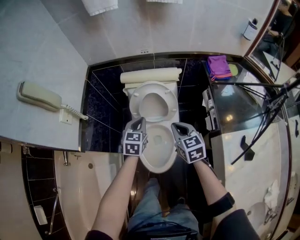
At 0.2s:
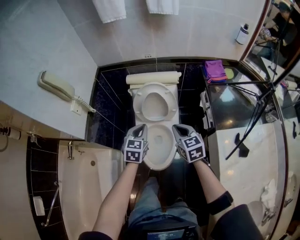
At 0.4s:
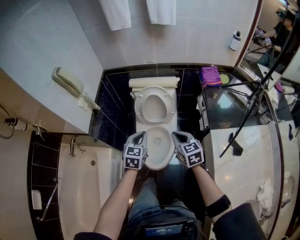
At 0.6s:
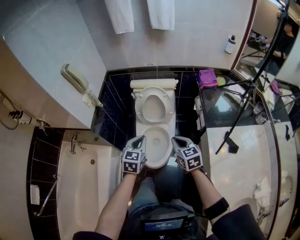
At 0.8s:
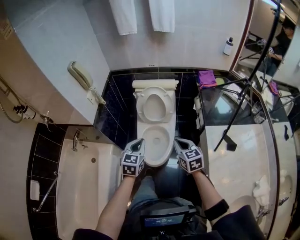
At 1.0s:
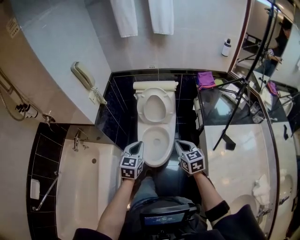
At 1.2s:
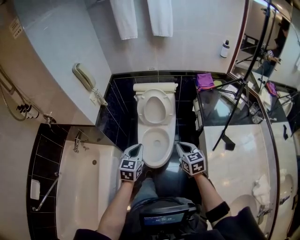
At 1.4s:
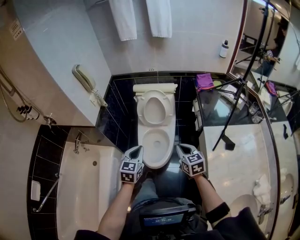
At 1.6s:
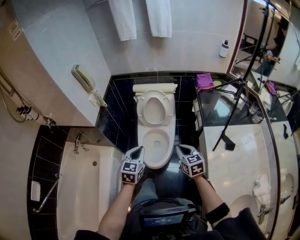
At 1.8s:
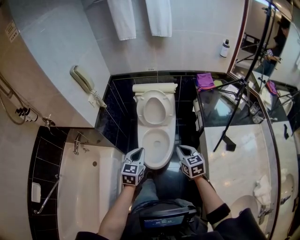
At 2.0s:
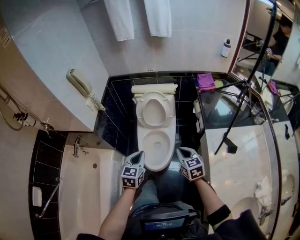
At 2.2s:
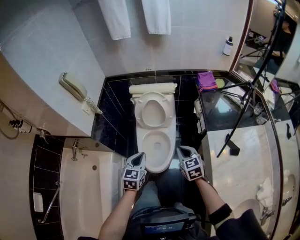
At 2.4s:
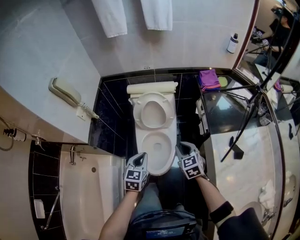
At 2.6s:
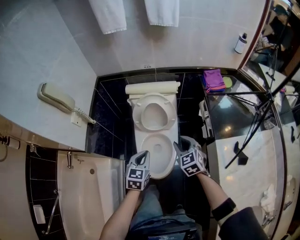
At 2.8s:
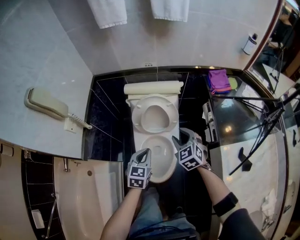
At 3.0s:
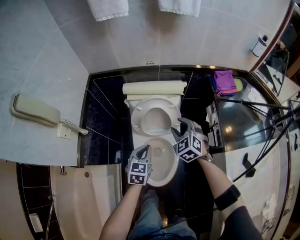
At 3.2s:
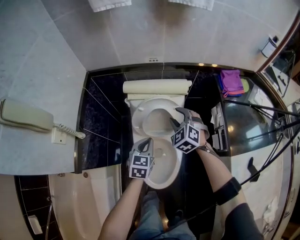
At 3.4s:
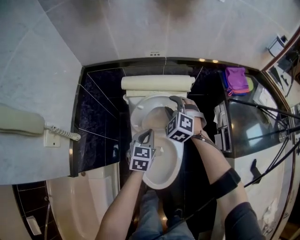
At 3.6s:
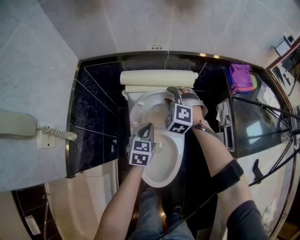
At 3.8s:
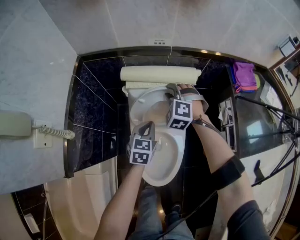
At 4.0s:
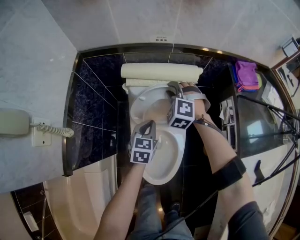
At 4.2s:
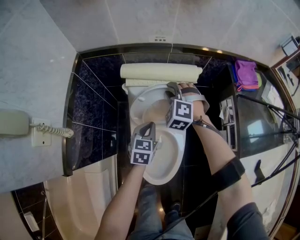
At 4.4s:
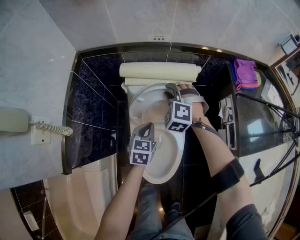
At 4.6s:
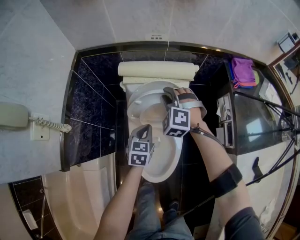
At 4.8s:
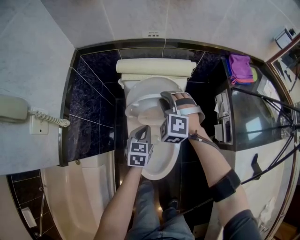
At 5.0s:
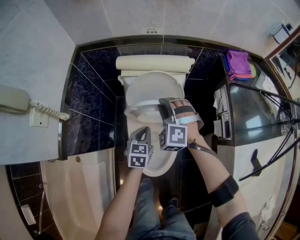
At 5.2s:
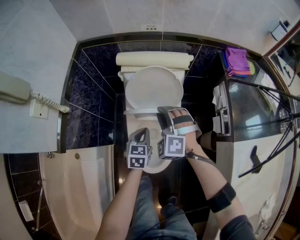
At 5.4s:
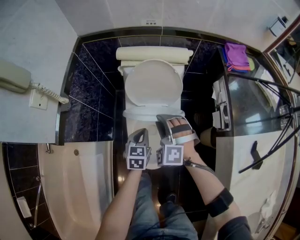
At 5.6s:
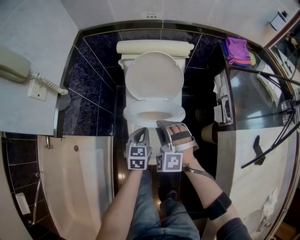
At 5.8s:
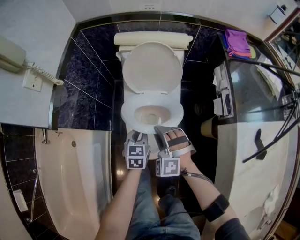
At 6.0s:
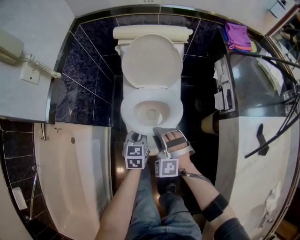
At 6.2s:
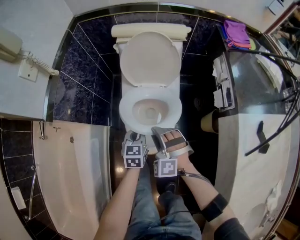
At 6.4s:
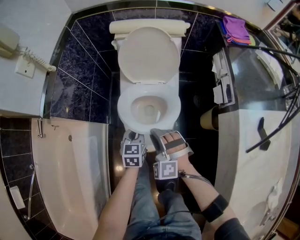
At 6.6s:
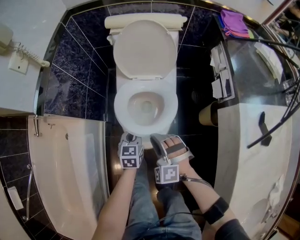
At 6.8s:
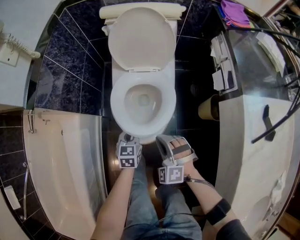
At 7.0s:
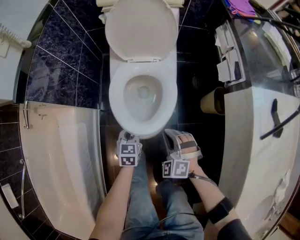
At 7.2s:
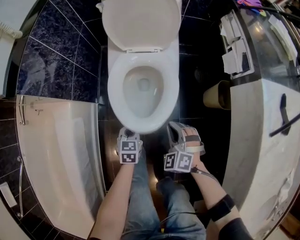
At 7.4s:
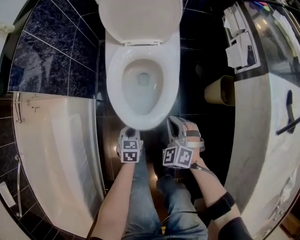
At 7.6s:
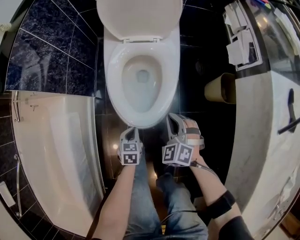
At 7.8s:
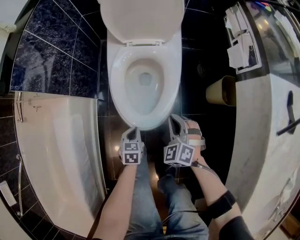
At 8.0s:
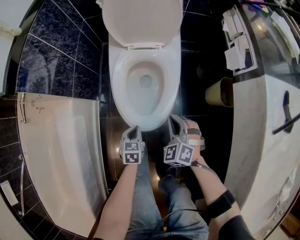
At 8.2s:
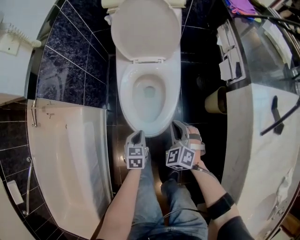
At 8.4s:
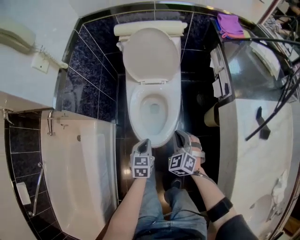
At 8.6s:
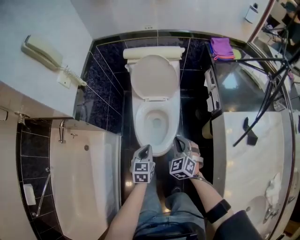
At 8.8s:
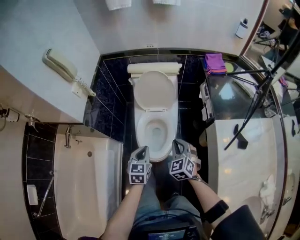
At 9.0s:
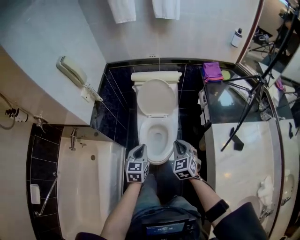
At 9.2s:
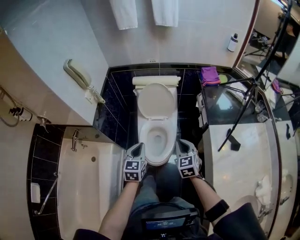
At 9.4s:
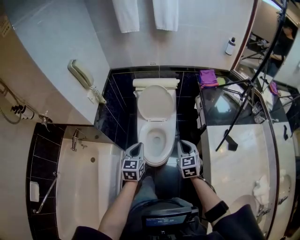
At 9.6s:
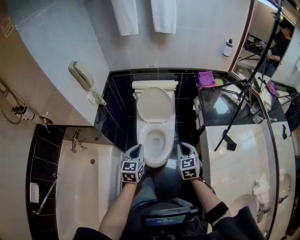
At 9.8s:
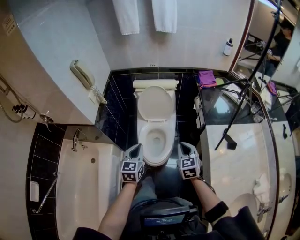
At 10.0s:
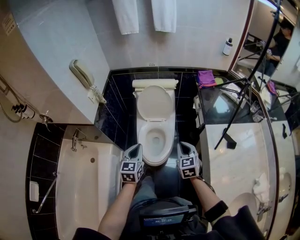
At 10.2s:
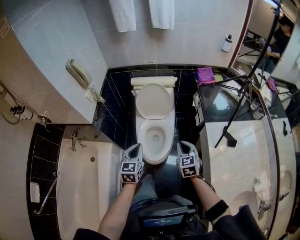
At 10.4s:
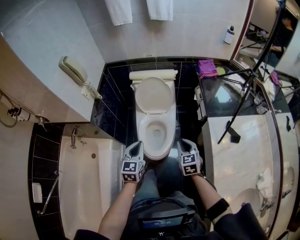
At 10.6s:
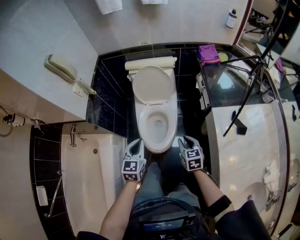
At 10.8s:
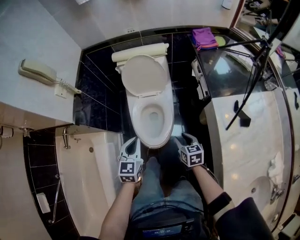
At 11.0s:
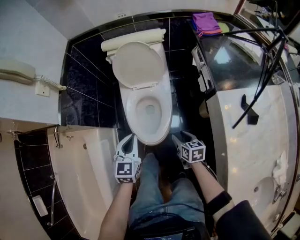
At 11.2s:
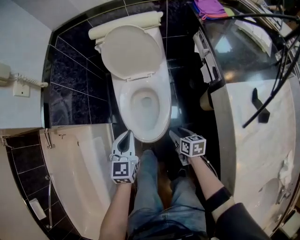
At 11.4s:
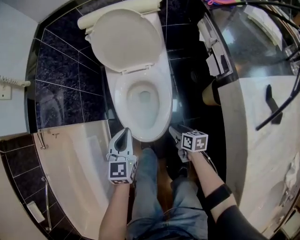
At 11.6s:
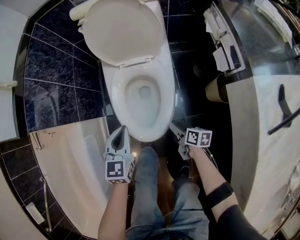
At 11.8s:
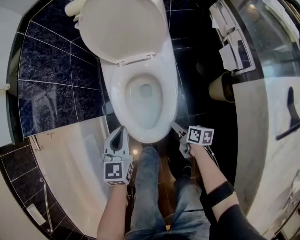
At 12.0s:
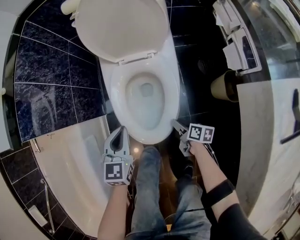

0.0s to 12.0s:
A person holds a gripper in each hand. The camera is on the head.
0.0s to 1.6s: Both grippers move backward, approximately 30 cm.
1.6s to 3.0s: The right gripper is displaced forward by roughly 35 cm, turns by some 40 degrees, and opens, while the left gripper moves forward and downward, roughly 35 cm.
3.0s to 4.4s: The left gripper goes roughly 15 cm forward and downward, while the right gripper heads forward, to the left and downward, covering approximately 20 cm, and turns by some 30 degrees.
4.4s to 6.0s: The right gripper shifts some 40 cm backward. The left gripper moves backward, about 25 cm.
6.0s to 7.6s: The right gripper is displaced downward, to the right and backward by about 25 cm, changes its angle by some 30 degrees, and closes; the left gripper moves downward and backward, approximately 35 cm.
7.6s to 9.0s: Both grippers travel together upward, about 50 cm. The left gripper changes its angle by roughly 30 degrees; the right gripper rotates roughly 30 degrees.
9.0s to 10.4s: The left gripper travels upward by some 5 cm. Meanwhile the right gripper moves approximately 5 cm.
10.4s to 12.0s: Both grippers travel together downward, approximately 50 cm. The right gripper rotates around the line of its fingers by roughly 60 degrees, clockwise from behind, and opens its fingers.

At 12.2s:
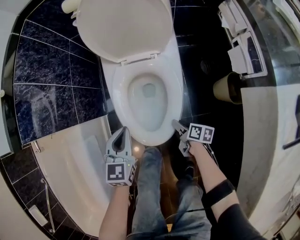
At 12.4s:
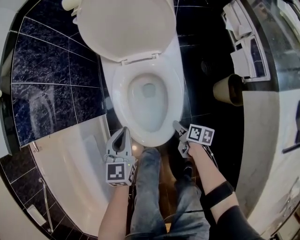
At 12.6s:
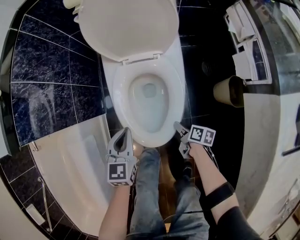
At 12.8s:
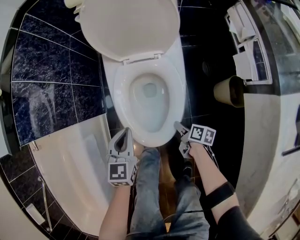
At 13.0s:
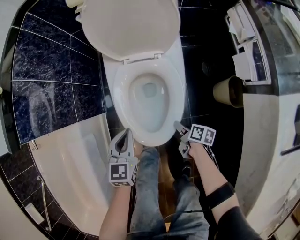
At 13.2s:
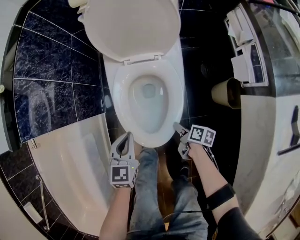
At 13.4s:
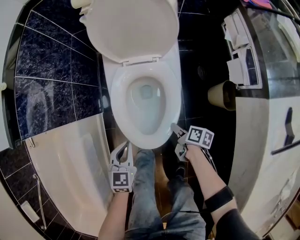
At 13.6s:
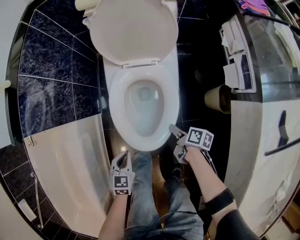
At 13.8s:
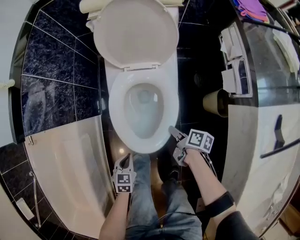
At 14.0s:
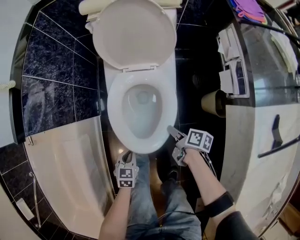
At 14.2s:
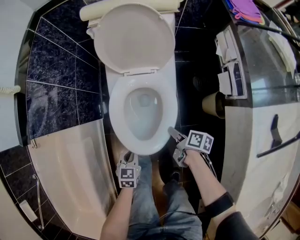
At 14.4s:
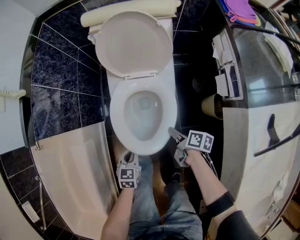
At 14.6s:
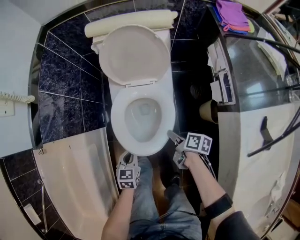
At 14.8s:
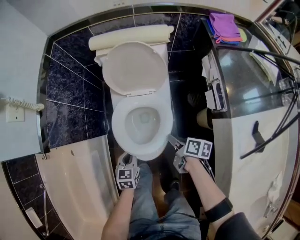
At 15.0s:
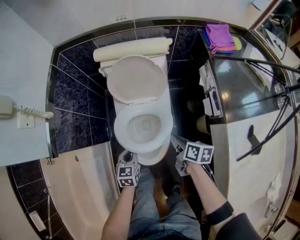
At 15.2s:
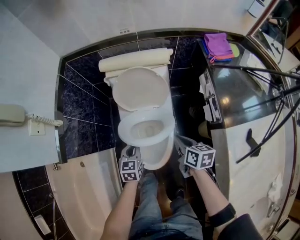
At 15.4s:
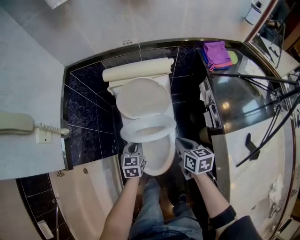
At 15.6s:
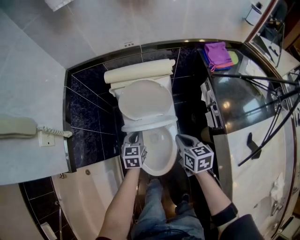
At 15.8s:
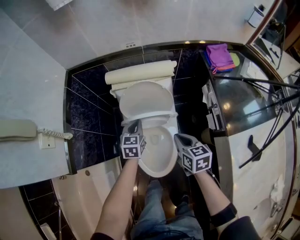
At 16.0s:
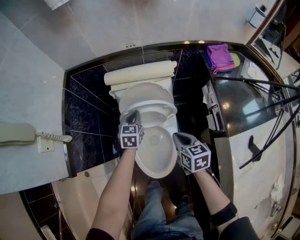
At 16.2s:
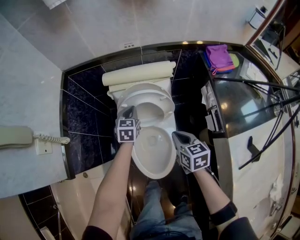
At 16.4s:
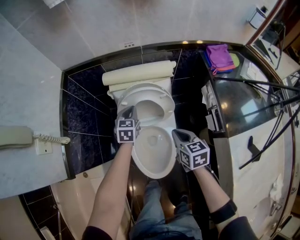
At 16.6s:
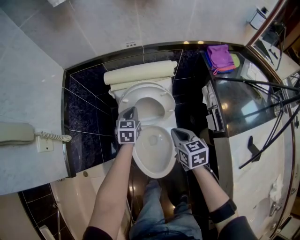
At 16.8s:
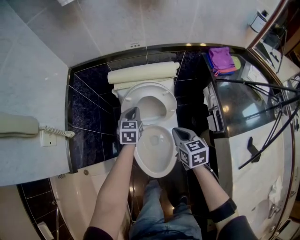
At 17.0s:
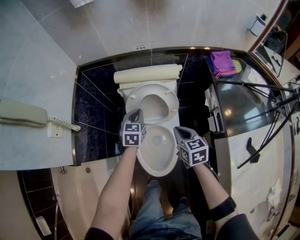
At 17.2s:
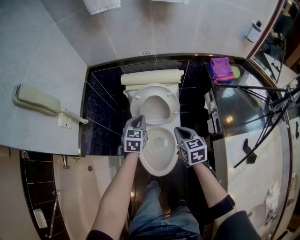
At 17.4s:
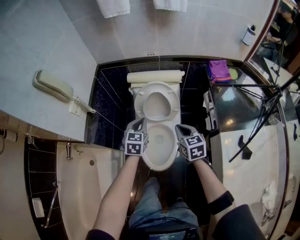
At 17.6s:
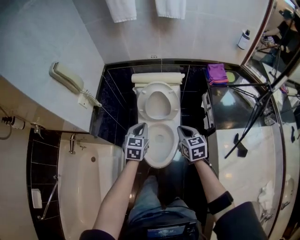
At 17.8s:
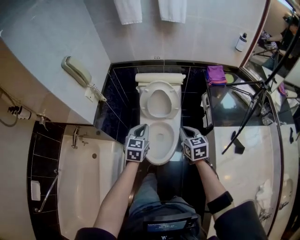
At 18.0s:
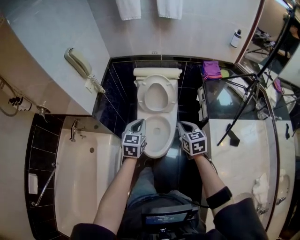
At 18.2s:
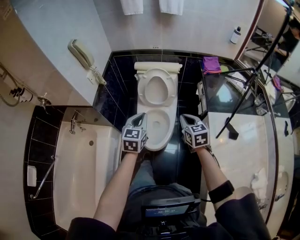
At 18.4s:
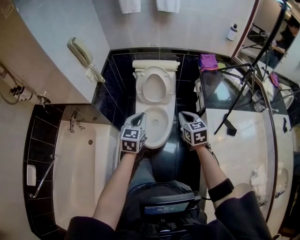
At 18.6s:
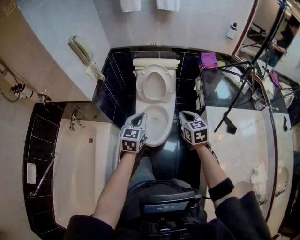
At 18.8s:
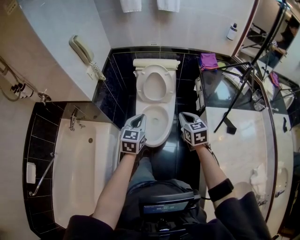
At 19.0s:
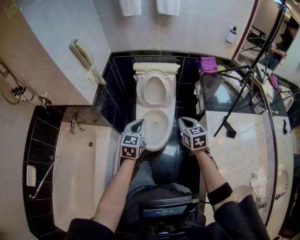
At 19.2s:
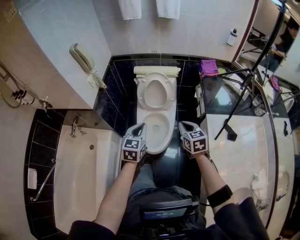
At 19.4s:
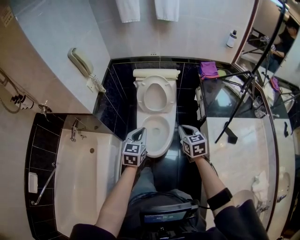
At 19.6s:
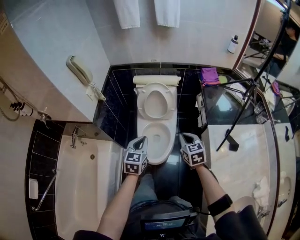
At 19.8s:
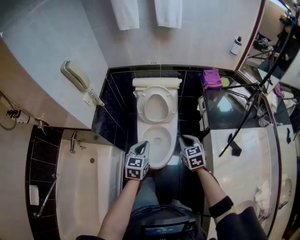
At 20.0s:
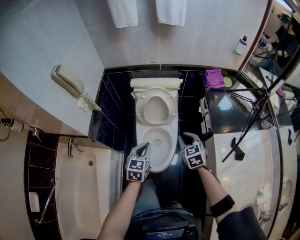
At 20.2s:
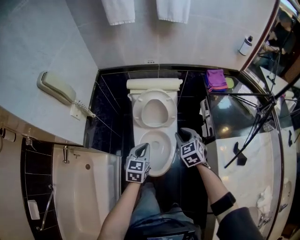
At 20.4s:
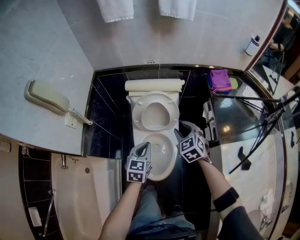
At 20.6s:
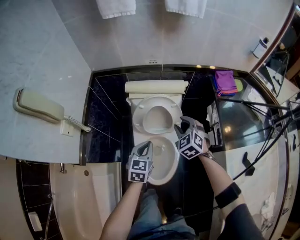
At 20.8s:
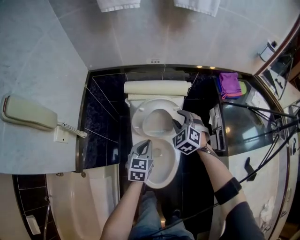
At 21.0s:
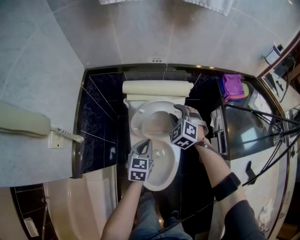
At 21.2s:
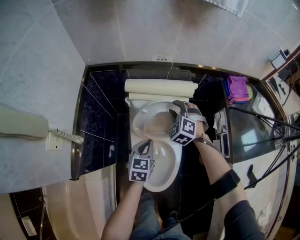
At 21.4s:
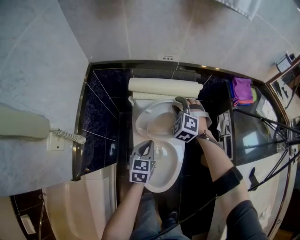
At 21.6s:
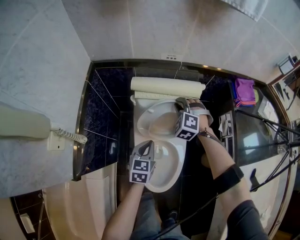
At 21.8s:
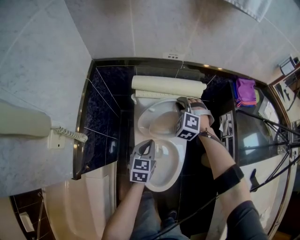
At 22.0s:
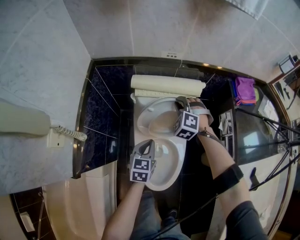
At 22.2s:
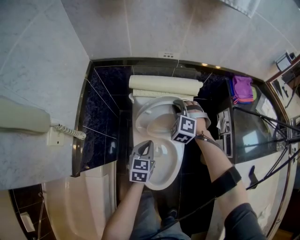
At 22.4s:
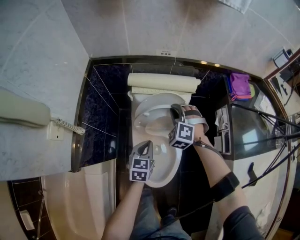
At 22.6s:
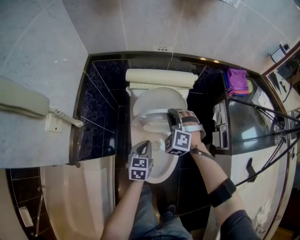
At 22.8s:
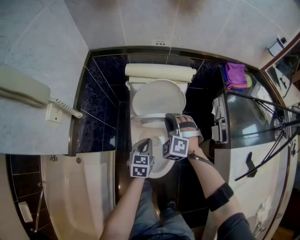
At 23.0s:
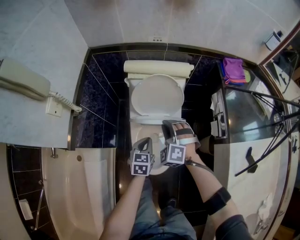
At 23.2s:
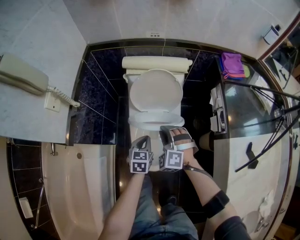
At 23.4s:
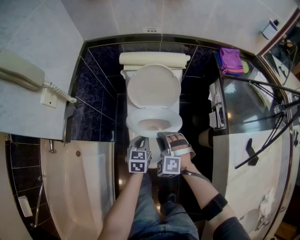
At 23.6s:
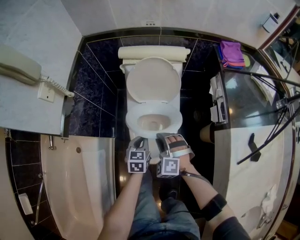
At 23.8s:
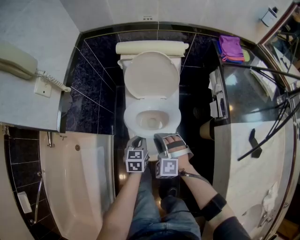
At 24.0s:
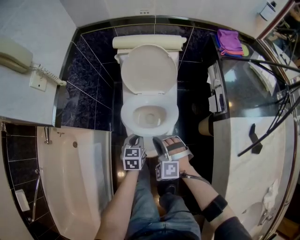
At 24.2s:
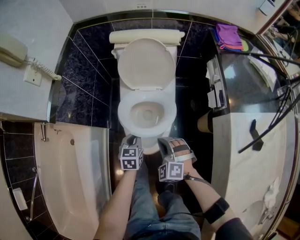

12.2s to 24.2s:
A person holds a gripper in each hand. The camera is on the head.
12.2s to 13.8s: The left gripper shifts roughly 15 cm backward and downward, and rotates some 20 degrees. Meanwhile the right gripper moves upward, approximately 10 cm.
13.8s to 15.2s: The right gripper shifts approximately 30 cm upward and forward, swivels about 30 degrees, and closes up. The left gripper is displaced forward and upward by some 30 cm.
15.2s to 16.6s: The left gripper travels forward by about 25 cm. The right gripper moves forward, about 10 cm, and turns by some 20 degrees.
16.6s to 18.2s: The right gripper moves backward and upward, approximately 30 cm; the left gripper is displaced backward and upward by roughly 50 cm.
18.2s to 19.8s: The left gripper is displaced downward by roughly 5 cm. Meanwhile the right gripper ends up some 5 cm from where it was.
19.8s to 21.2s: The right gripper shifts some 40 cm forward, rolls counterclockwise, seen from behind, by about 50 degrees, and opens up, while the left gripper travels forward and downward by some 35 cm.
21.2s to 22.6s: The two grippers go approximately 10 cm backward. The right gripper closes.
22.6s to 24.2s: The right gripper heads backward, covering roughly 35 cm. The left gripper travels backward and downward by roughly 20 cm.
